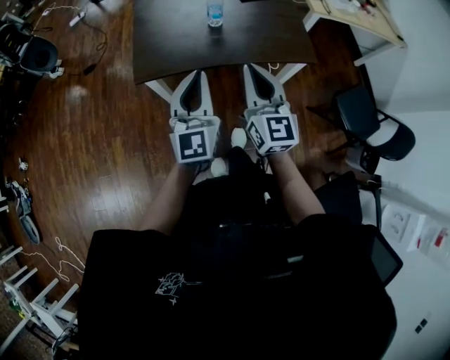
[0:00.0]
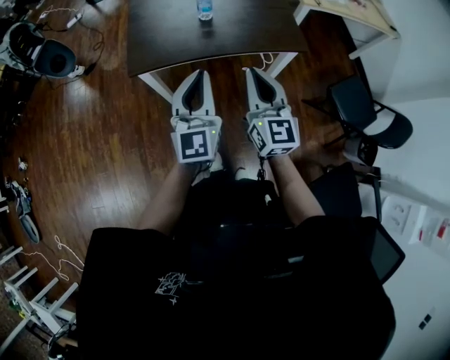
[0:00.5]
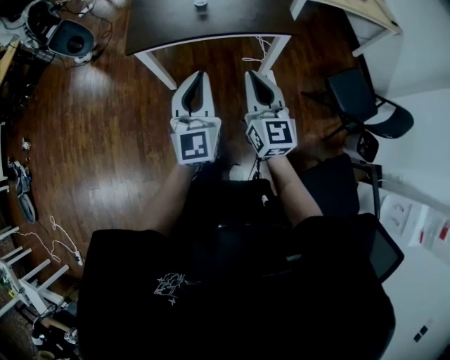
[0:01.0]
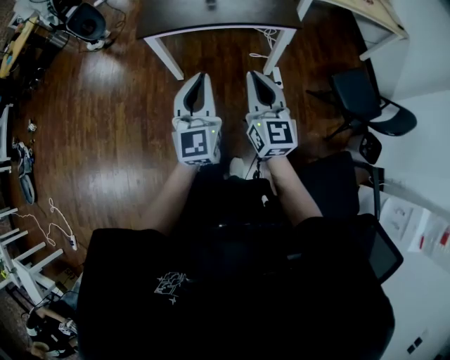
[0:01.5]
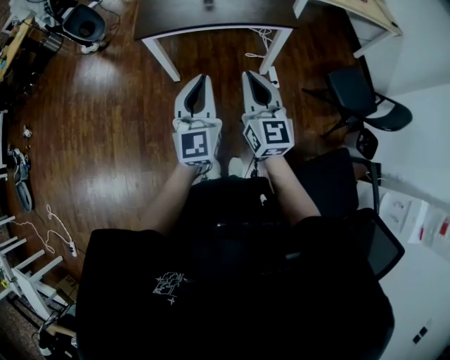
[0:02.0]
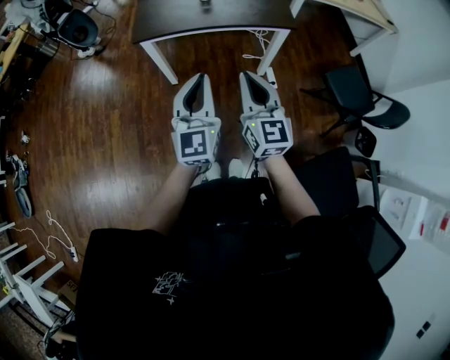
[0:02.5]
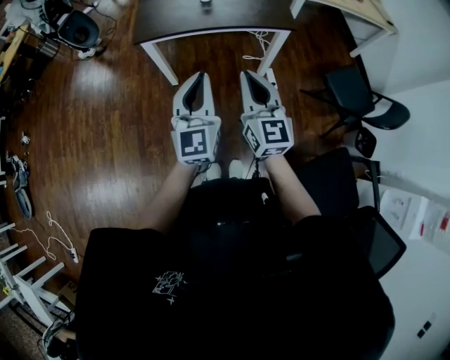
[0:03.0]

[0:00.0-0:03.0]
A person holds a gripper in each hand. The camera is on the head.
0:00.0 to 0:01.5: Both grippers travel together backward, some 25 cm.
0:01.5 to 0:03.0: The grippers stay close to where they were, moving slightly.

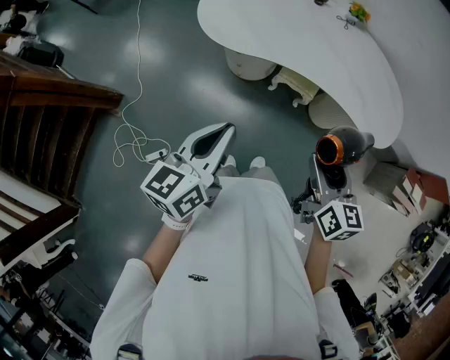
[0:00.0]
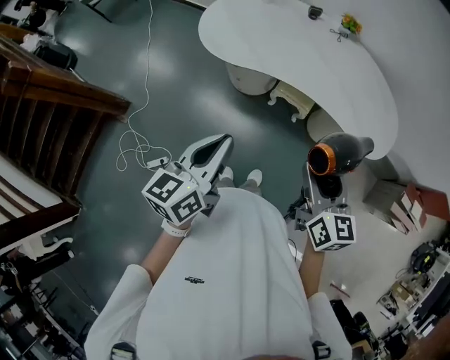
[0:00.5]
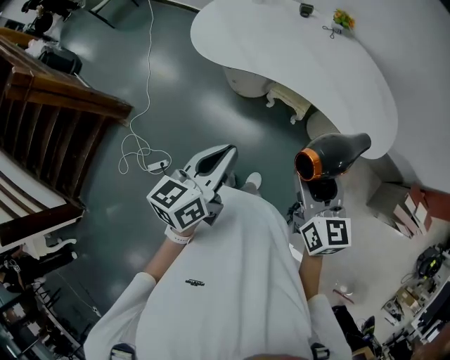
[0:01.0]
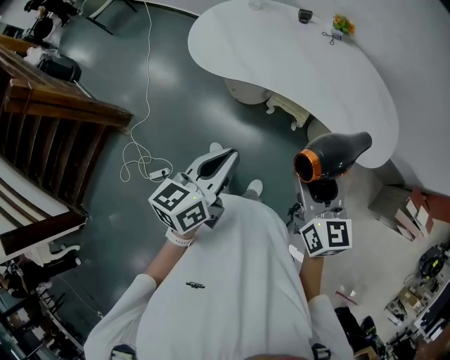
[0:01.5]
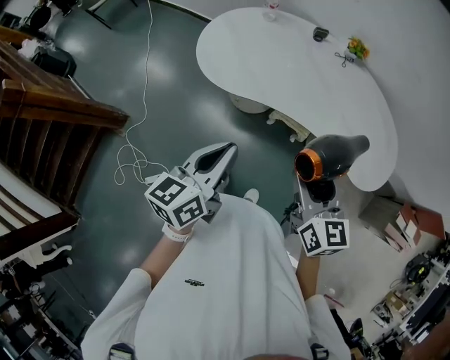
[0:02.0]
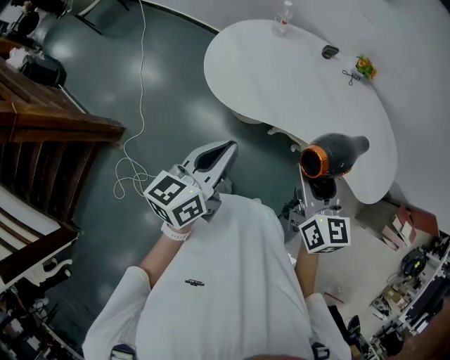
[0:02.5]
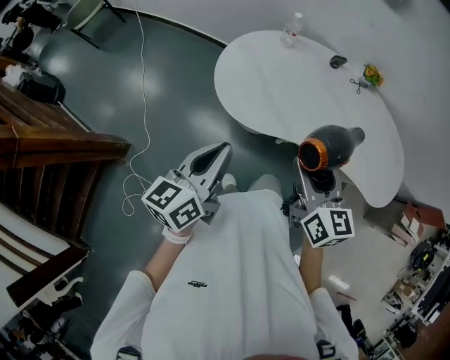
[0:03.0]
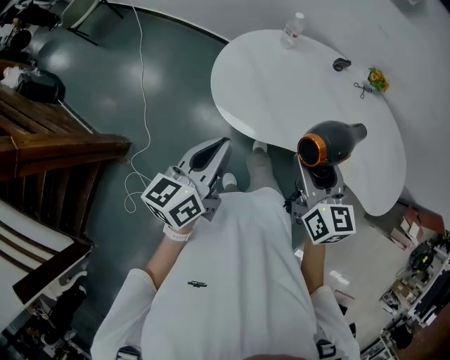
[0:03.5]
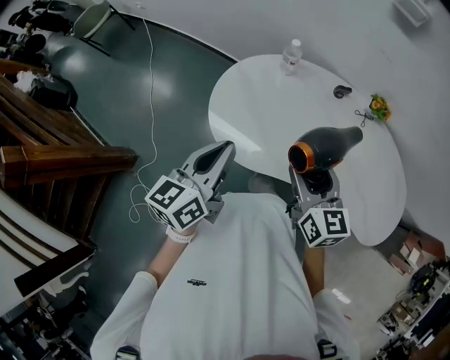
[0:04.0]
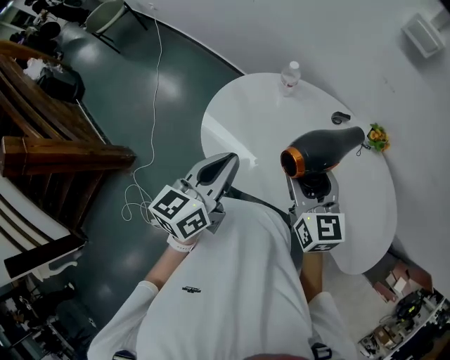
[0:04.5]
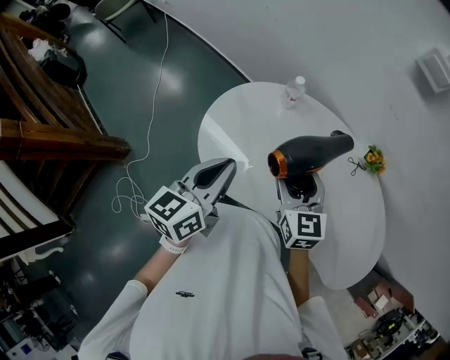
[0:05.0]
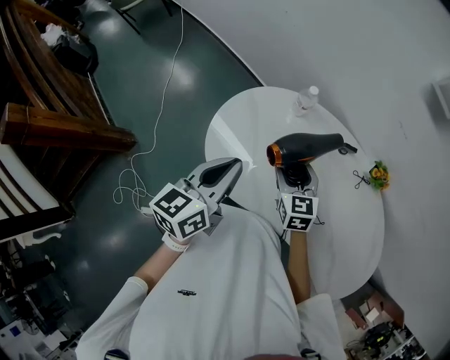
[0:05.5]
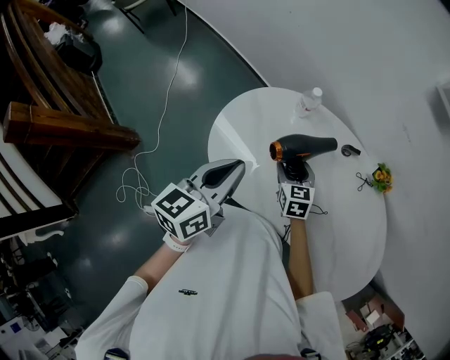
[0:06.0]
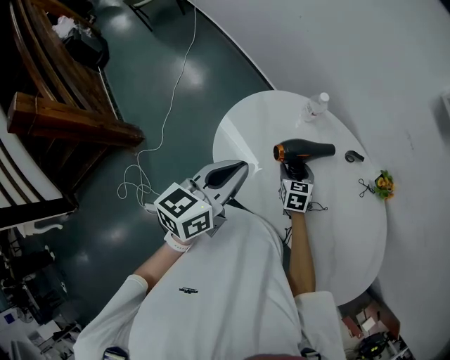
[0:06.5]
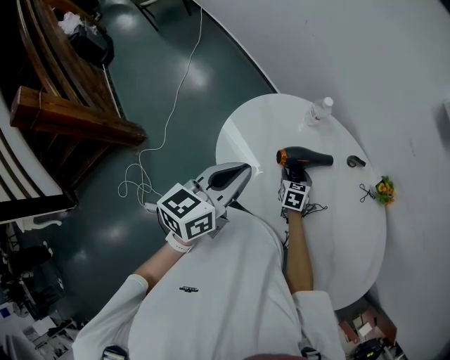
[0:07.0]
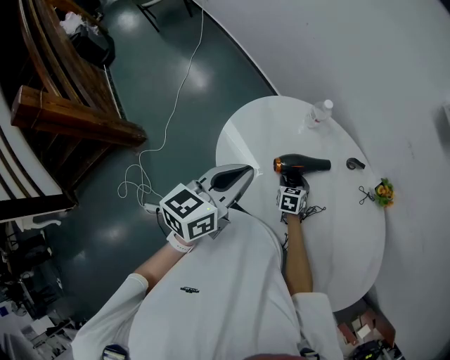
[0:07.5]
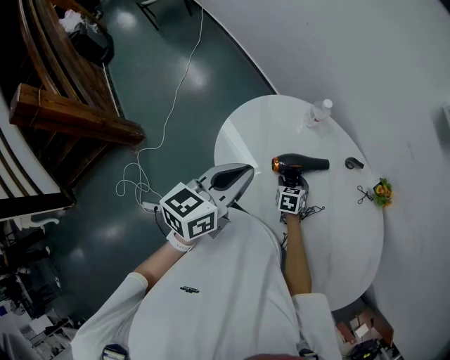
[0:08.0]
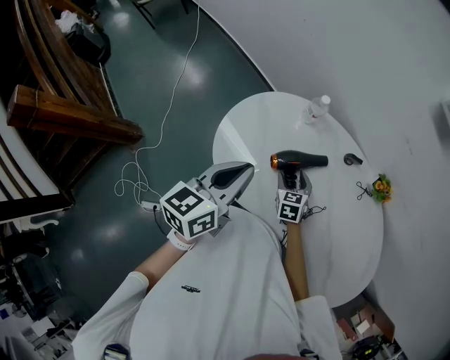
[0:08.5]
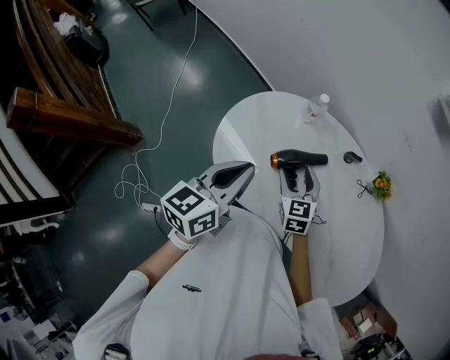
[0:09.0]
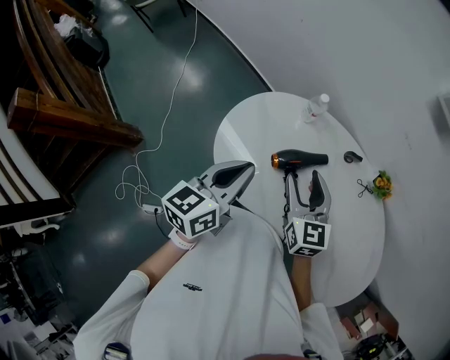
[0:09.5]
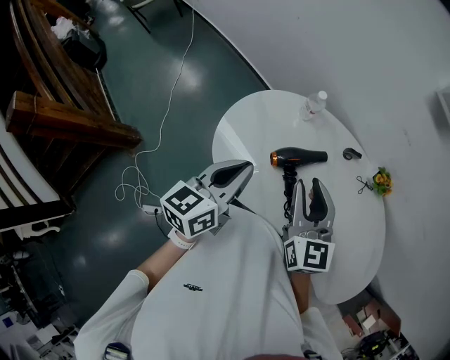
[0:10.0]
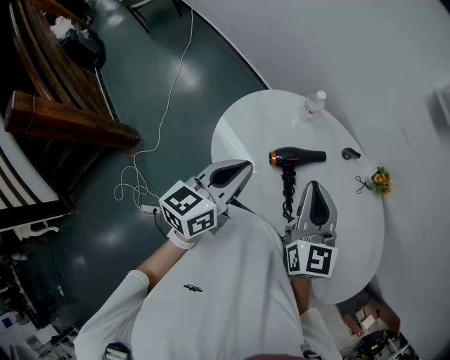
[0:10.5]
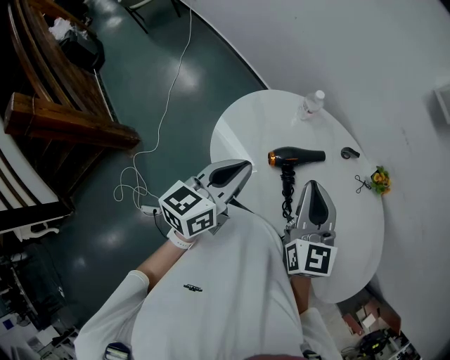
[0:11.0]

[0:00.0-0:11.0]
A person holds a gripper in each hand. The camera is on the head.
0:00.0 to 0:02.0: Both grippers travel together forward, approximately 10 cm.
0:02.0 to 0:03.5: The right gripper moves forward and to the left, roughly 25 cm; the left gripper shifts some 25 cm to the left and forward.
0:03.5 to 0:05.5: The right gripper heads forward and downward, covering some 30 cm, and changes its angle by roughly 30 degrees; the left gripper is displaced forward and to the right by some 20 cm.
0:05.5 to 0:07.5: The right gripper travels downward by about 25 cm, and swivels about 30 degrees.
0:07.5 to 0:09.0: The right gripper travels upward by roughly 20 cm, and rotates roughly 20 degrees.
0:09.0 to 0:11.0: The right gripper travels upward by roughly 20 cm, changes its angle by some 20 degrees, and closes up.

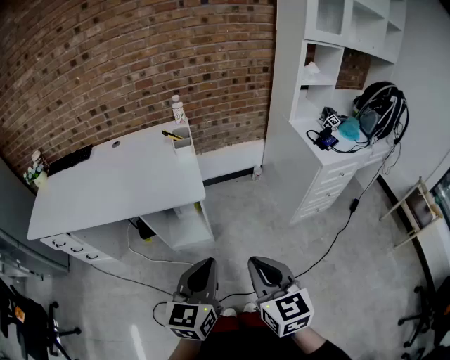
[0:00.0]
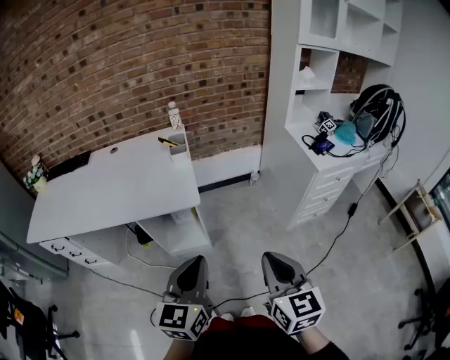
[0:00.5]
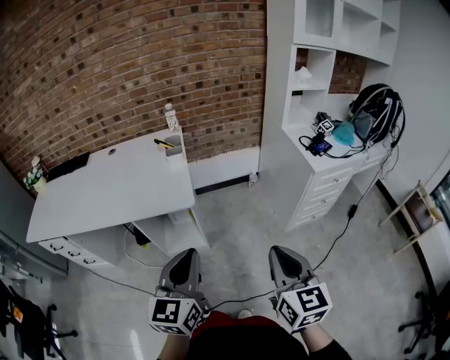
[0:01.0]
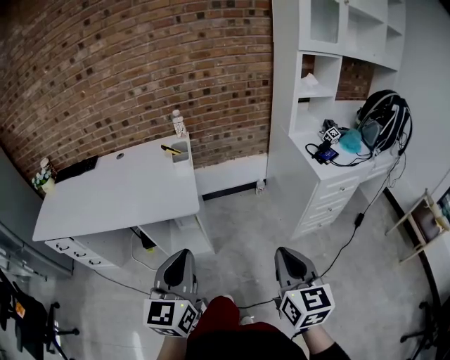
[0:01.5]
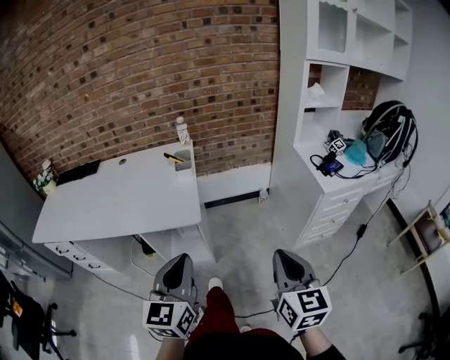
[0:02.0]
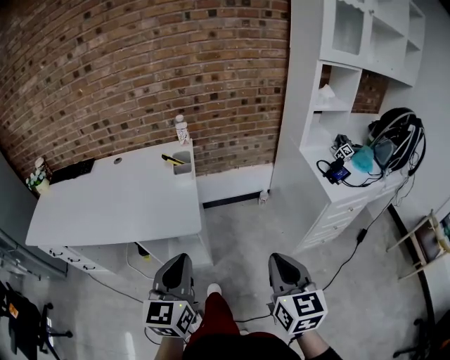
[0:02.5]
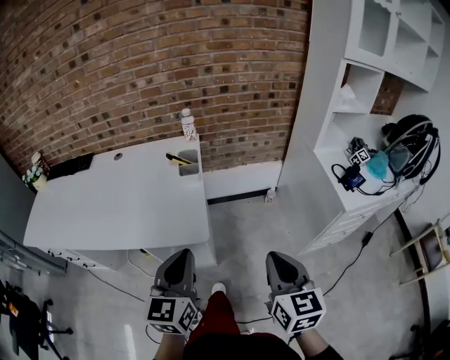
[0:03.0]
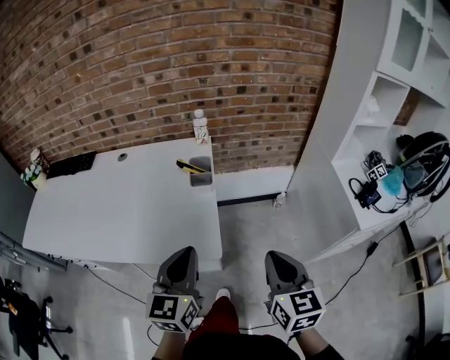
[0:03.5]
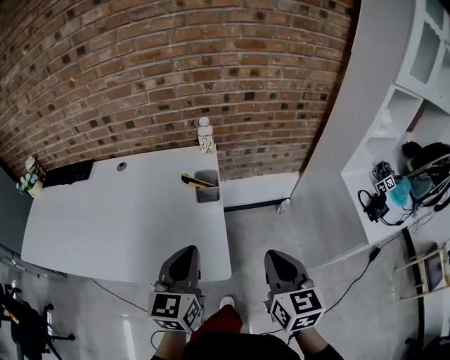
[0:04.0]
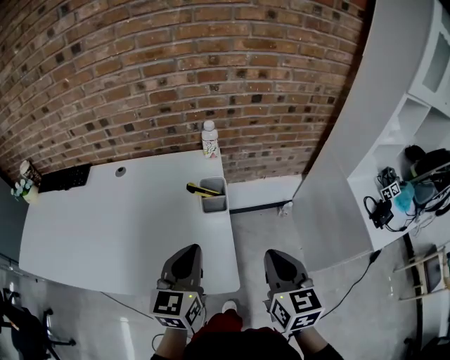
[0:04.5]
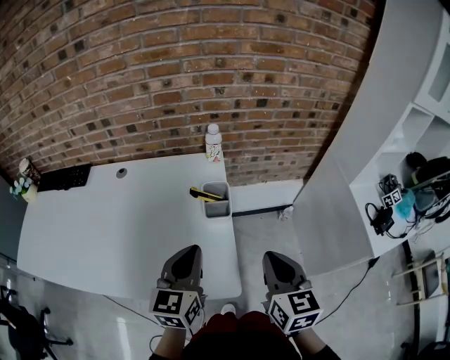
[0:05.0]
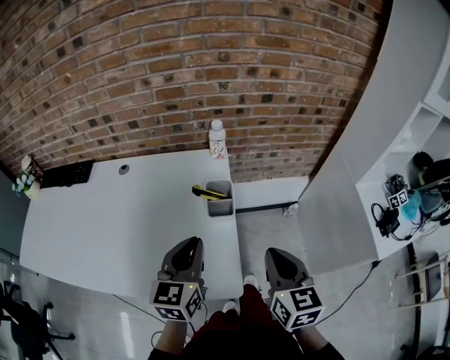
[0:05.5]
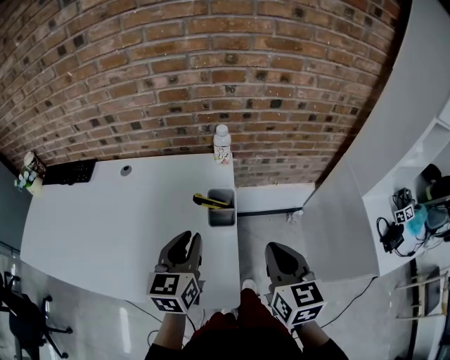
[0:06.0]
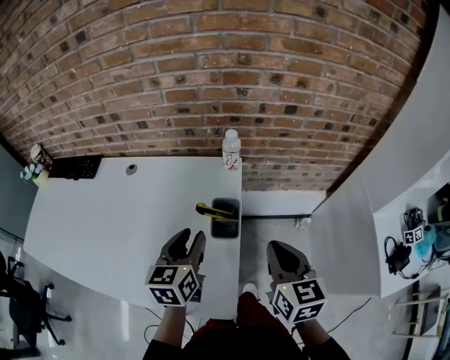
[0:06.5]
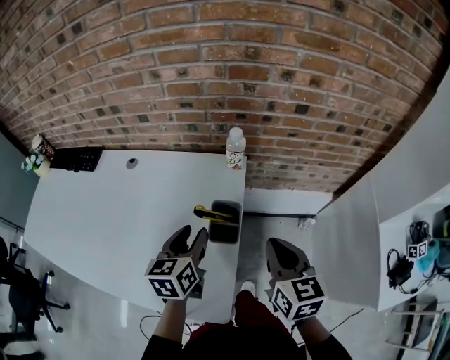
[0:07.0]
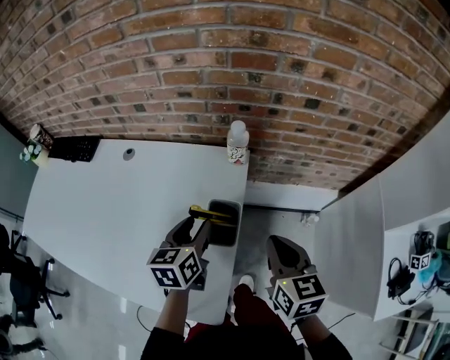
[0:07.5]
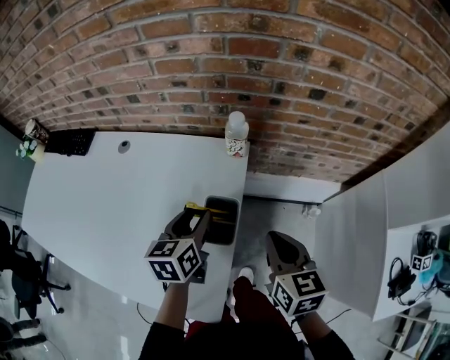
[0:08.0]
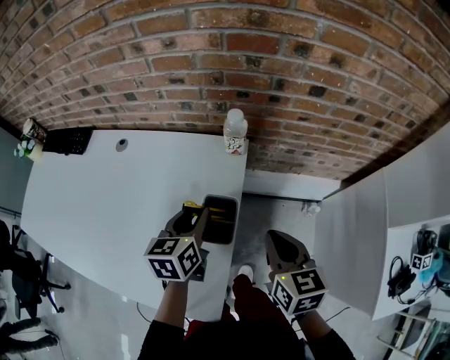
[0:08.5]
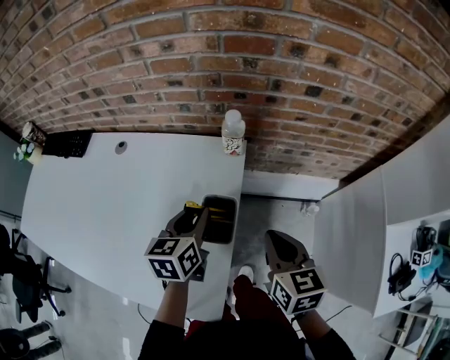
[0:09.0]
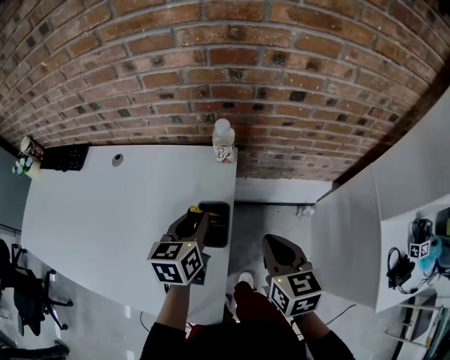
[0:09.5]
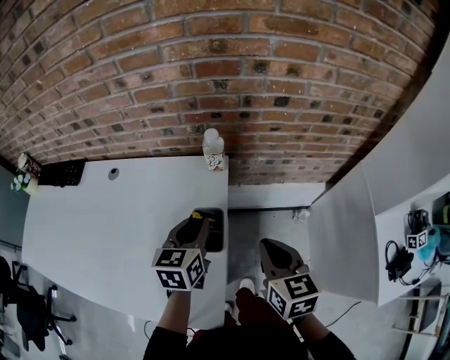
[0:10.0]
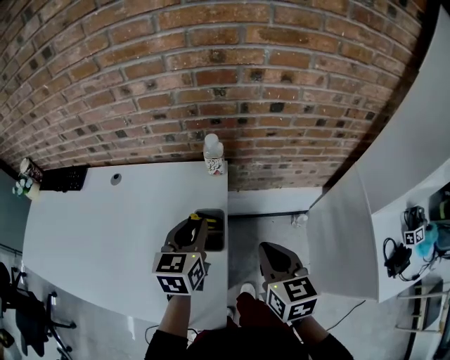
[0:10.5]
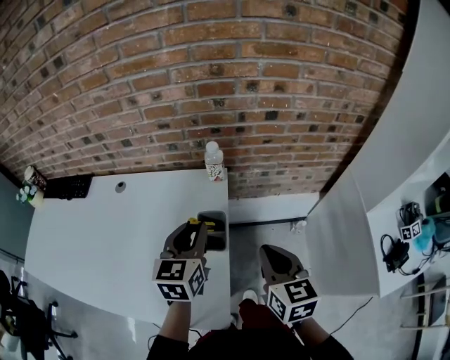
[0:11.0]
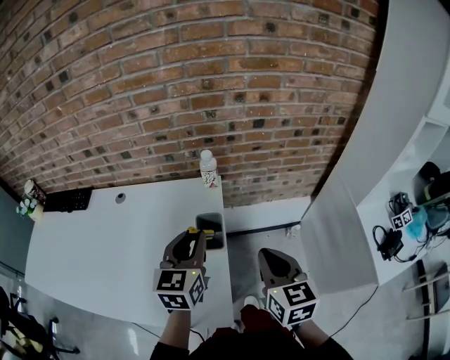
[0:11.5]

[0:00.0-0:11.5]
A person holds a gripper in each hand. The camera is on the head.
0:00.0 to 0:02.0: The right gripper heads to the right and forward, covering roughly 15 cm. The left gripper heads forward, covering roughly 5 cm.
0:02.0 to 0:04.0: The right gripper is displaced forward and to the left by approximately 30 cm. Meanwhile the left gripper is displaced forward by some 30 cm.
0:04.0 to 0:06.0: Both grippers move forward, approximately 15 cm.
0:06.0 to 0:07.5: Both grippers move forward and downward, some 15 cm. The left gripper opens.
0:07.5 to 0:09.5: The left gripper closes its fingers.
0:09.5 to 0:11.5: The right gripper moves backward and upward, some 10 cm. The left gripper moves upward and backward, roughly 15 cm, and swivels some 20 degrees.

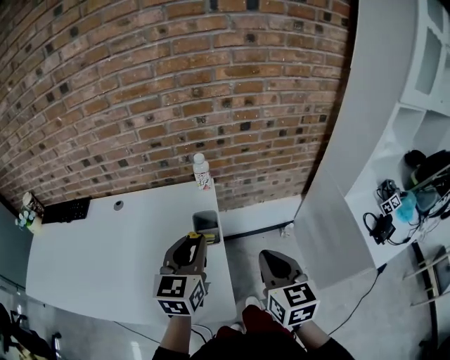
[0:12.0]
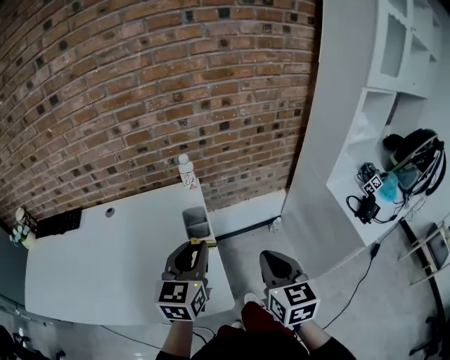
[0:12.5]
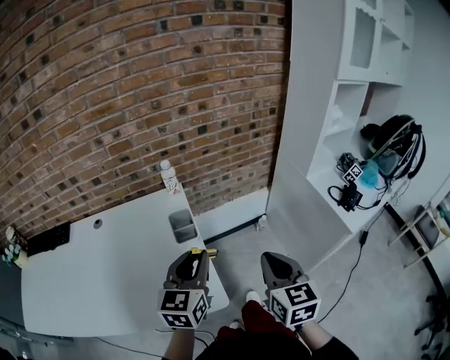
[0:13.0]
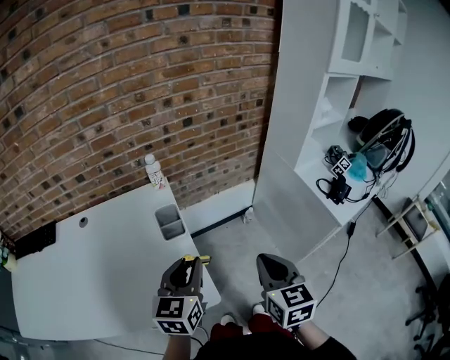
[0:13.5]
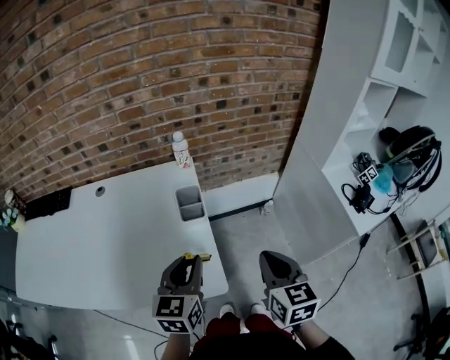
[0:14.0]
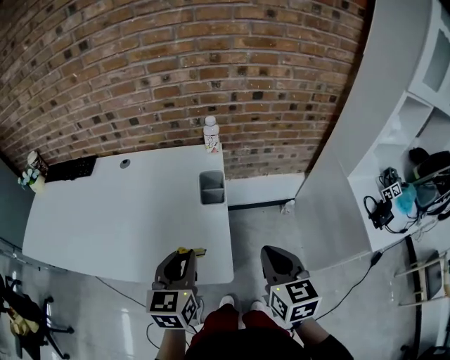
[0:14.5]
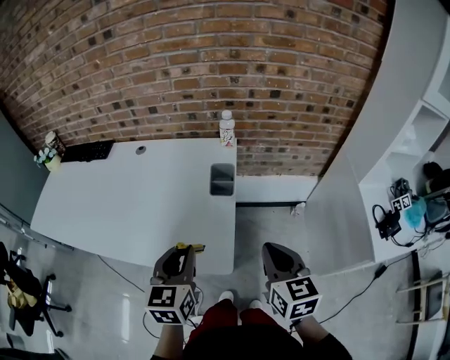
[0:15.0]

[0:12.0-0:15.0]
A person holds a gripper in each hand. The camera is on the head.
0:12.0 to 0:13.5: The two grippers go about 10 cm backward and to the right.
0:13.5 to 0:15.0: The right gripper moves some 5 cm, and rotates about 30 degrees. Meanwhile the left gripper changes place by approximately 10 cm, and swivels about 30 degrees.
